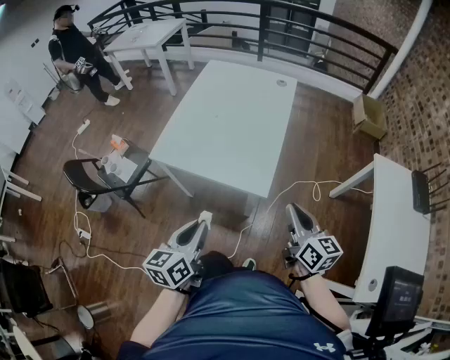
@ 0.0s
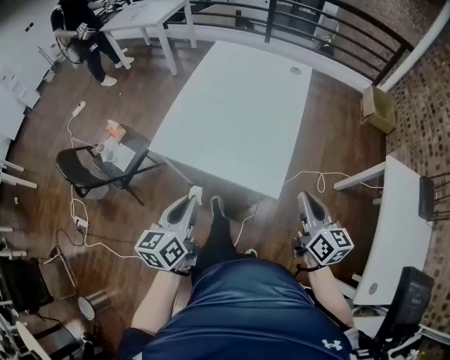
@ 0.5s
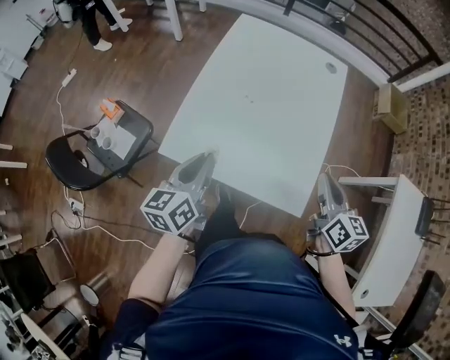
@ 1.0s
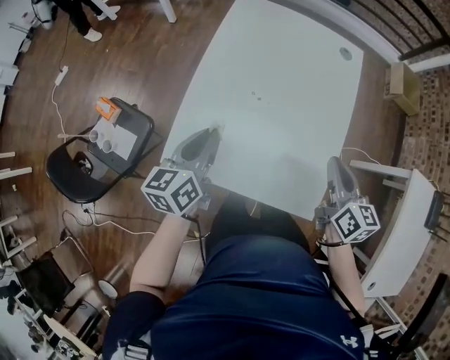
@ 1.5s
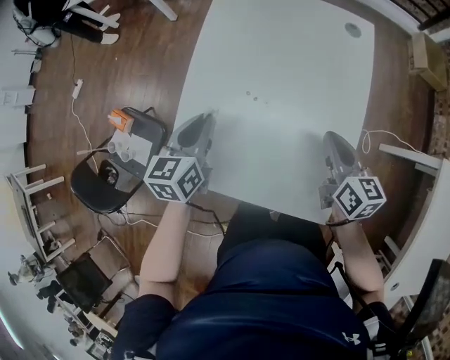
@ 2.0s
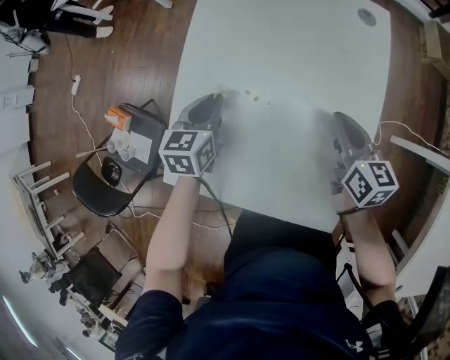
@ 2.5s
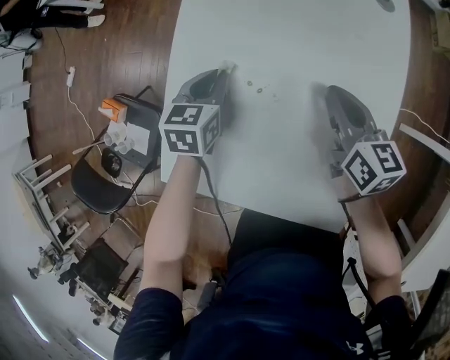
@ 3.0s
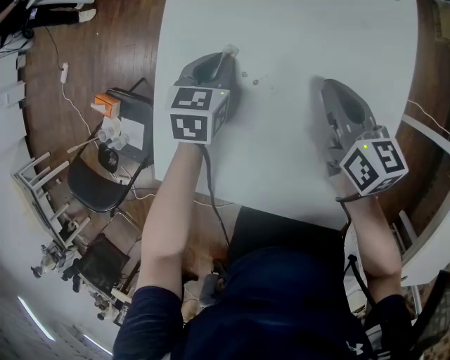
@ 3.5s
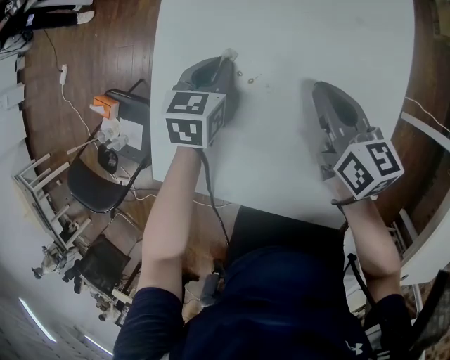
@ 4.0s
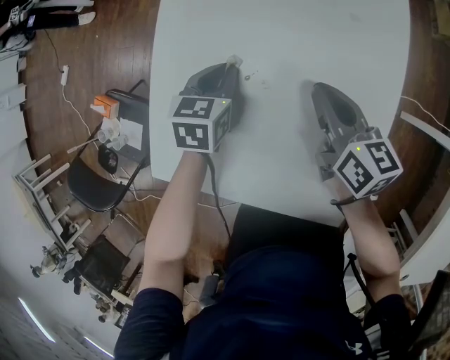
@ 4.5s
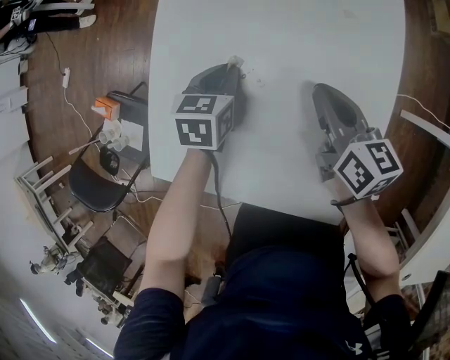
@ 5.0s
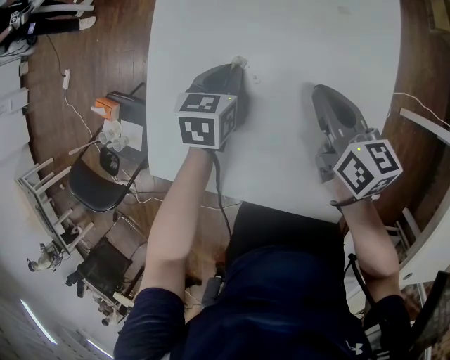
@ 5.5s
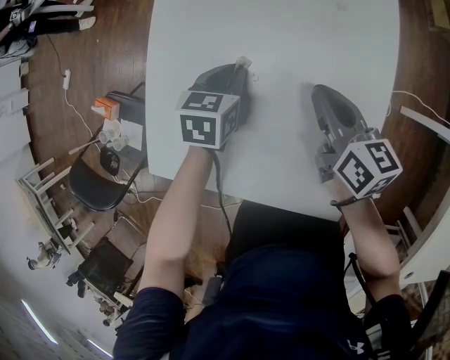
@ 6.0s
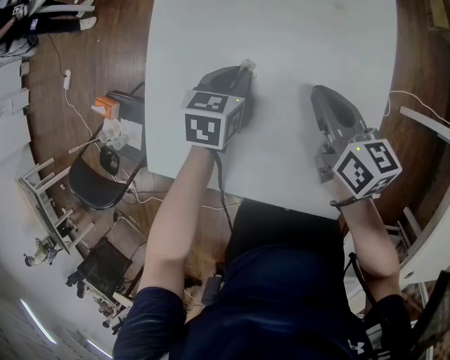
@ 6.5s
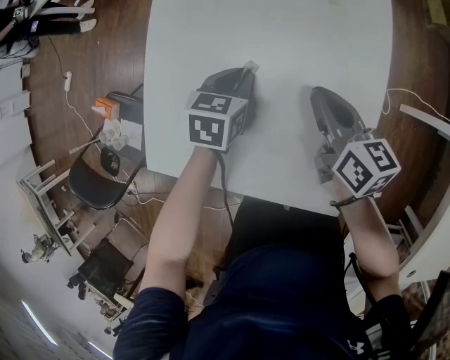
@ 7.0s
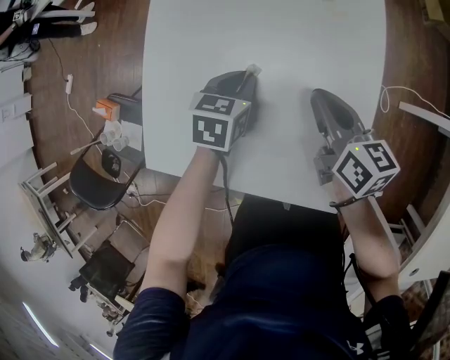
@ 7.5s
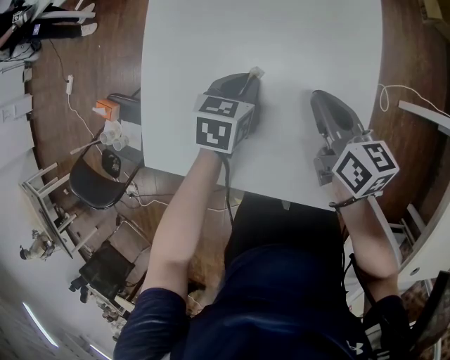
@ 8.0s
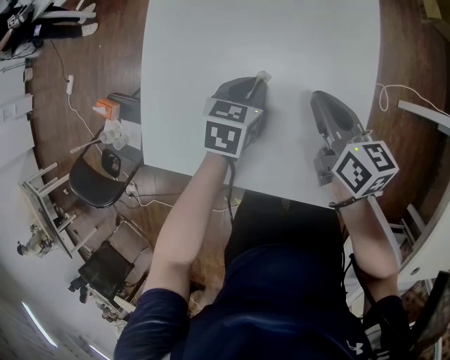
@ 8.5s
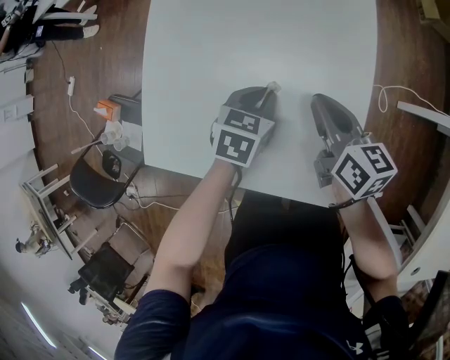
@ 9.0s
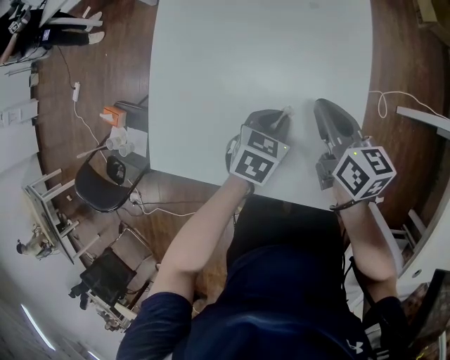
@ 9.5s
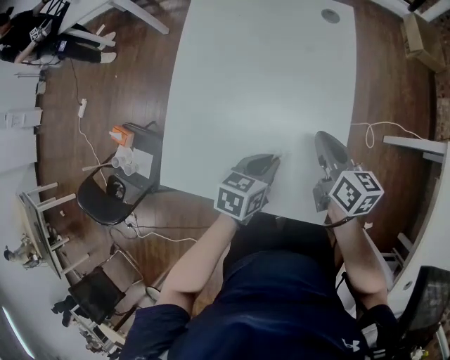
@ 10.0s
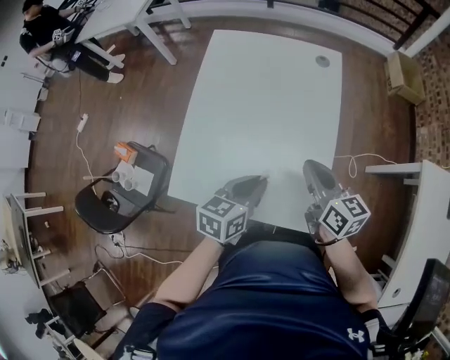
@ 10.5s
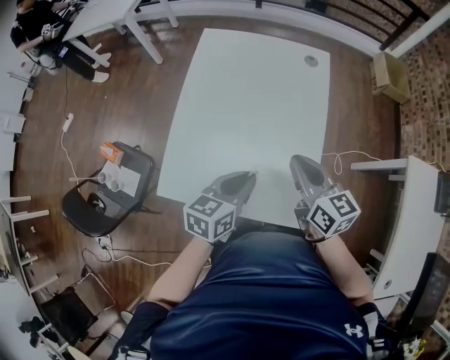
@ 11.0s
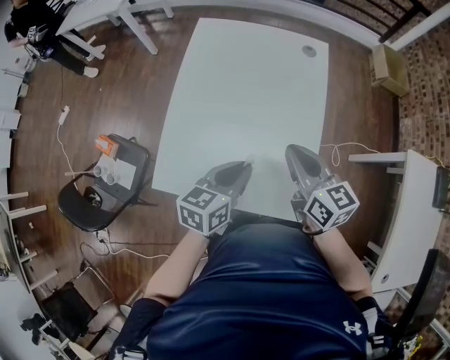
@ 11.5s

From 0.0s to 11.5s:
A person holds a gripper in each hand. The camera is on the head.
From 0.0s to 2.0s: The two grippers go roughly 40 cm forward.
From 2.0s to 4.0s: The right gripper travels forward, downward and to the left by about 10 cm; the left gripper shifts about 20 cm downward and forward, and changes its angle by roughly 20 degrees.
From 4.0s to 6.0s: The left gripper goes approximately 5 cm to the right.
From 6.0s to 7.5s: The right gripper changes place by about 5 cm. Meanwhile the left gripper ends up about 5 cm from where it was.
From 7.5s to 9.5s: The left gripper travels to the right and backward by roughly 10 cm.
From 9.5s to 11.5s: The grippers both shift upward by some 20 cm. The left gripper changes its angle by roughly 30 degrees.

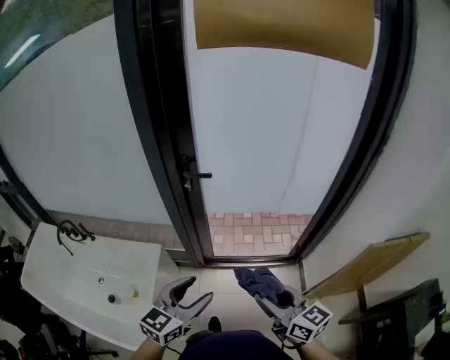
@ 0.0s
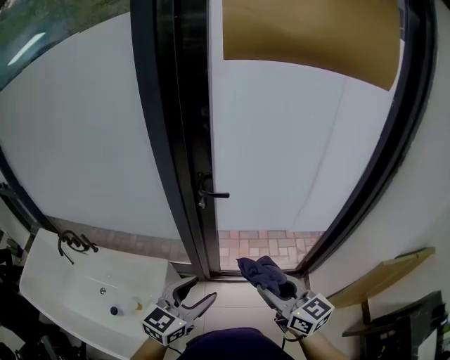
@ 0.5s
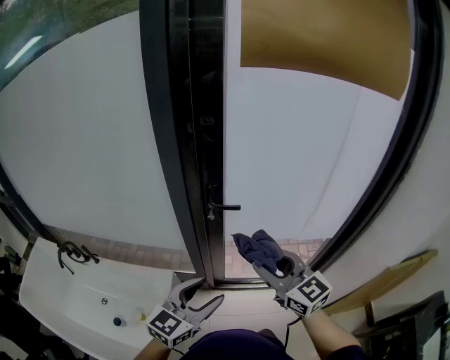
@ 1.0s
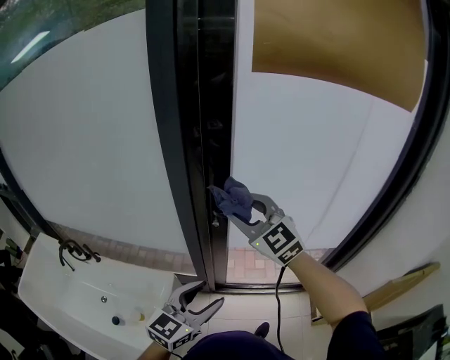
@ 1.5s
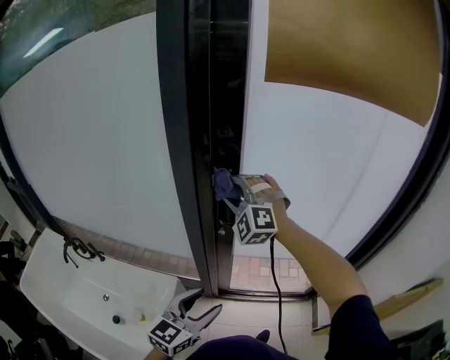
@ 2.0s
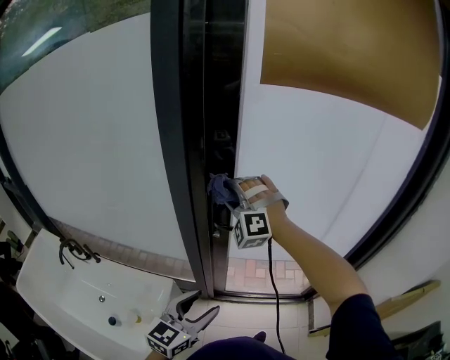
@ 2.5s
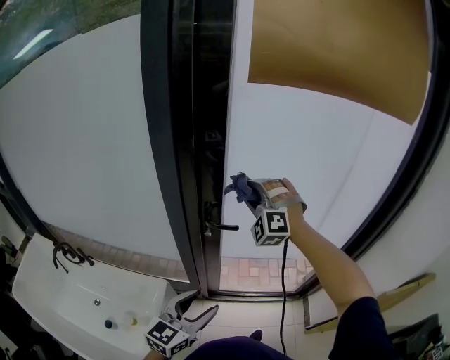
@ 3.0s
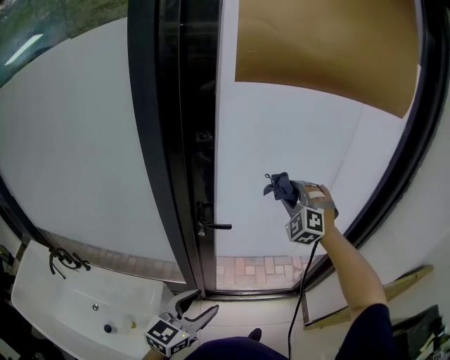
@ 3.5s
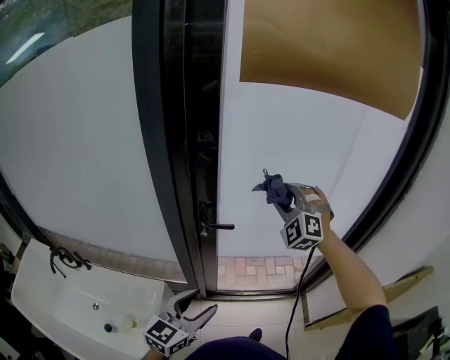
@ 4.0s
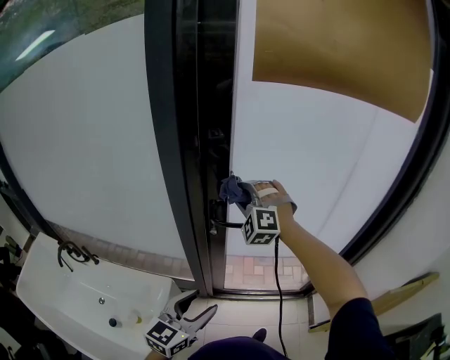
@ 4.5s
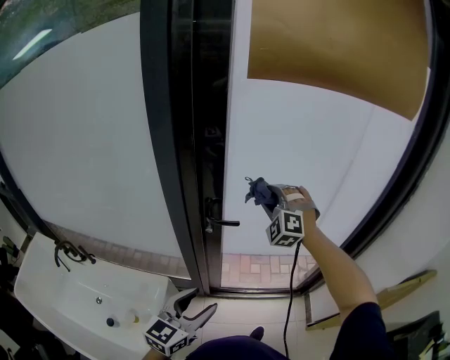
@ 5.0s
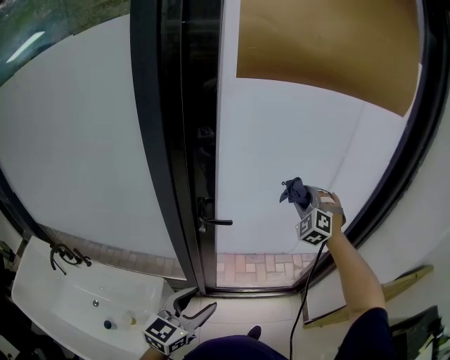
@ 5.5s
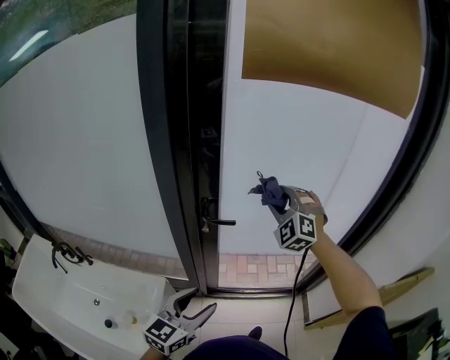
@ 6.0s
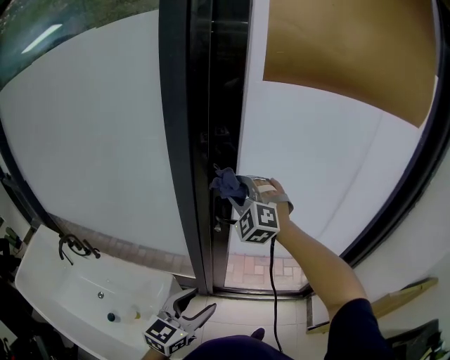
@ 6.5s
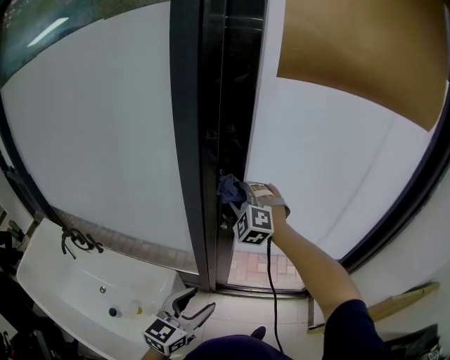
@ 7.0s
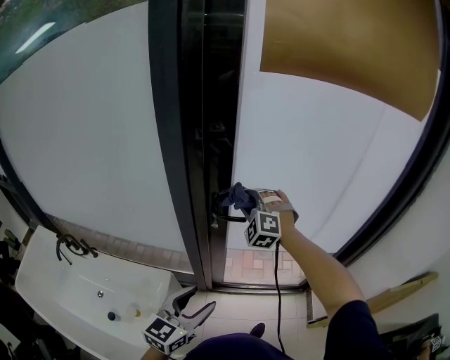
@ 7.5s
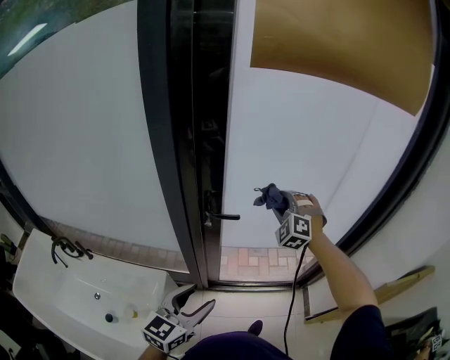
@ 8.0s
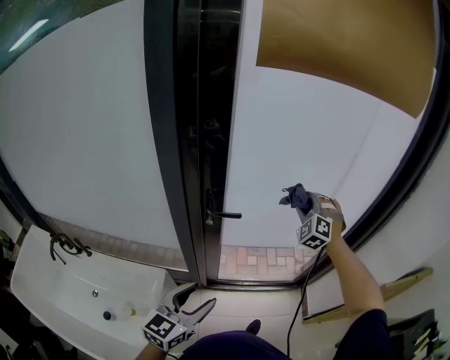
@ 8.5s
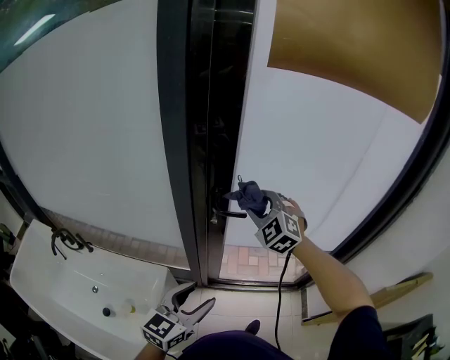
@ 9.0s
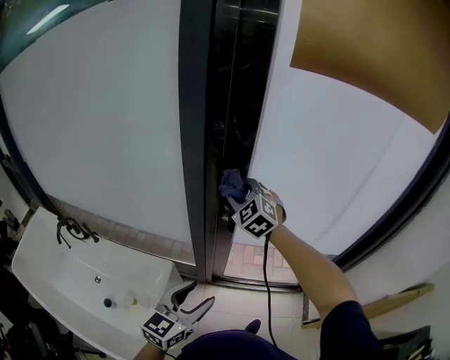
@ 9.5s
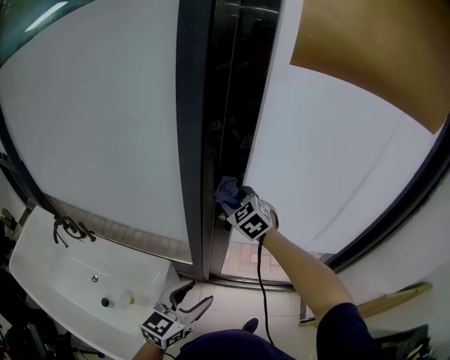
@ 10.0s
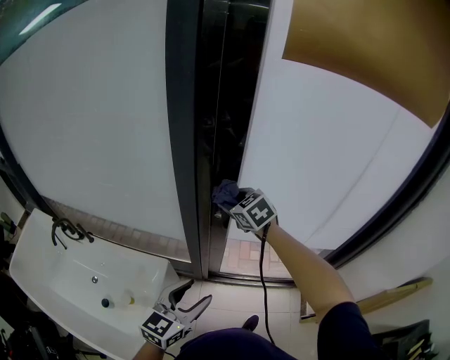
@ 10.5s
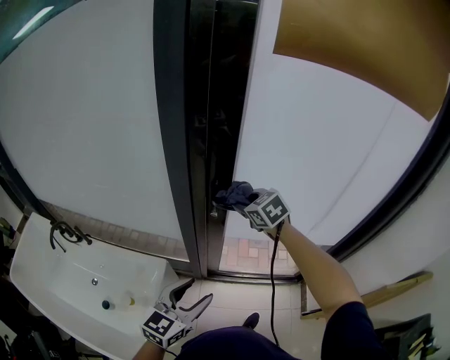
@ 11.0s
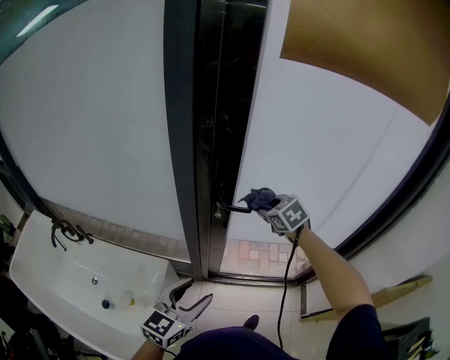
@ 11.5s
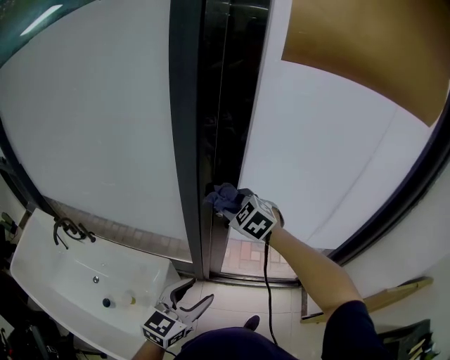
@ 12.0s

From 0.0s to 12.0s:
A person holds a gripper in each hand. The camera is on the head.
From 0.0s to 2.0s: The right gripper goes some 50 cm forward and to the left, and rolls counterclockwise, seen from behind, by roughly 90 degrees. Meanwhile the left gripper travels forward and to the left by about 20 cm.
From 2.0s to 4.0s: The right gripper shifts roughly 20 cm to the right.
From 4.0s to 6.0s: The right gripper goes left and right, approximately 25 cm each way, reversing 2 times.
From 6.0s to 8.0s: The right gripper shifts about 10 cm downward, and travels to the left and back again, approximately 20 cm each way.
From 8.0s to 10.0s: The right gripper heads to the left, covering approximately 20 cm, and changes its angle by approximately 40 degrees.
From 10.0s to 12.0s: The right gripper travels to the right and back again, some 15 cm each way.

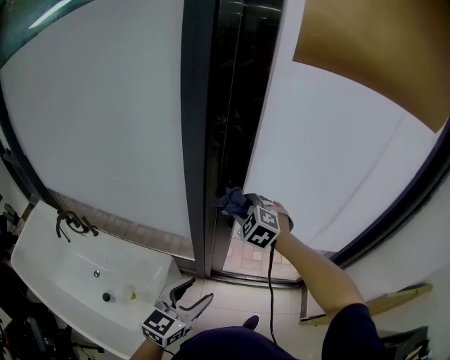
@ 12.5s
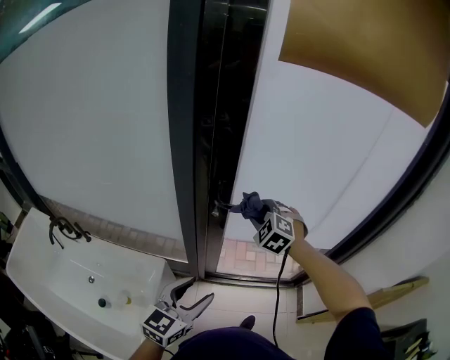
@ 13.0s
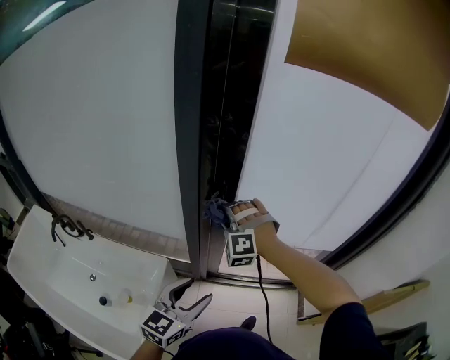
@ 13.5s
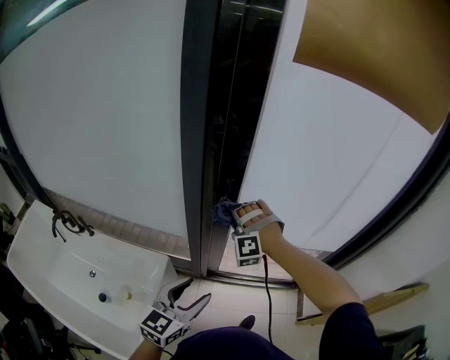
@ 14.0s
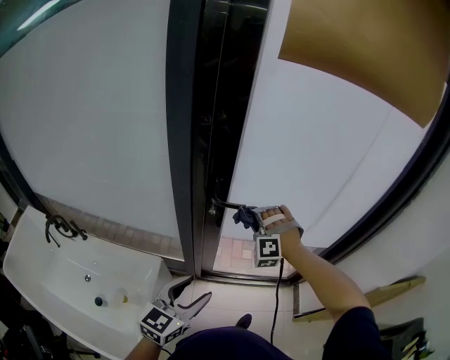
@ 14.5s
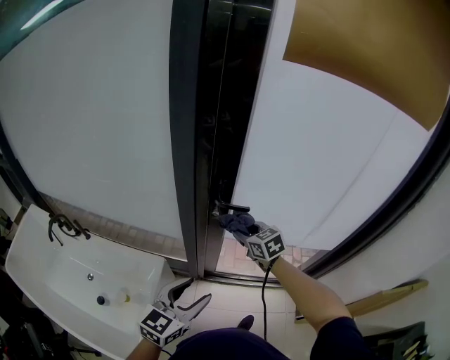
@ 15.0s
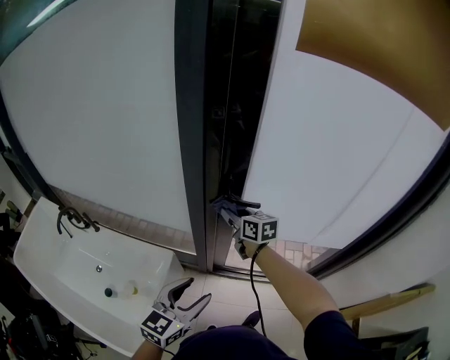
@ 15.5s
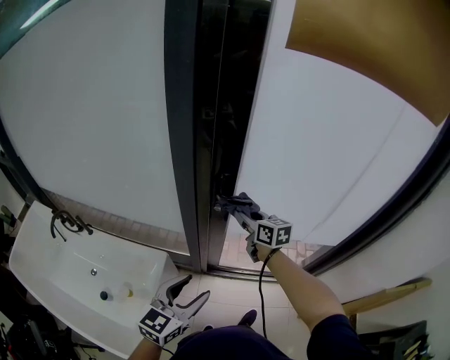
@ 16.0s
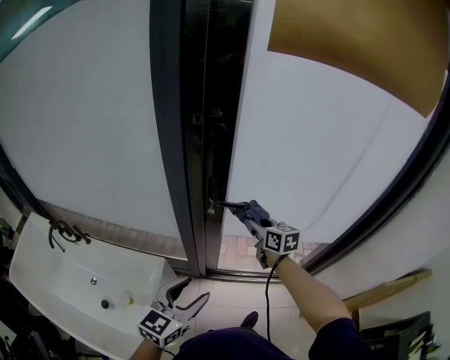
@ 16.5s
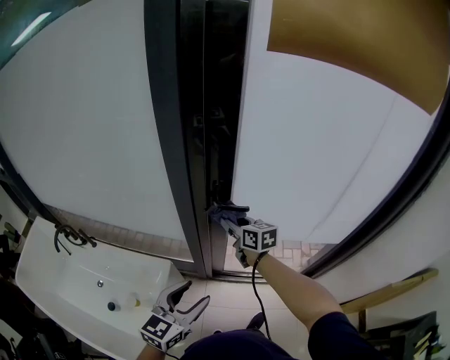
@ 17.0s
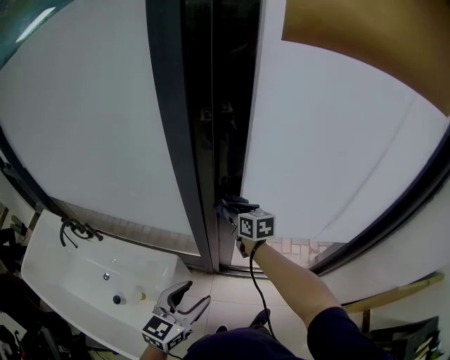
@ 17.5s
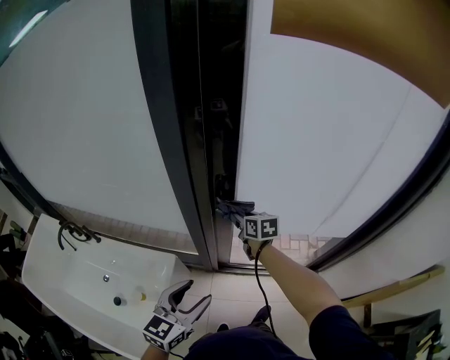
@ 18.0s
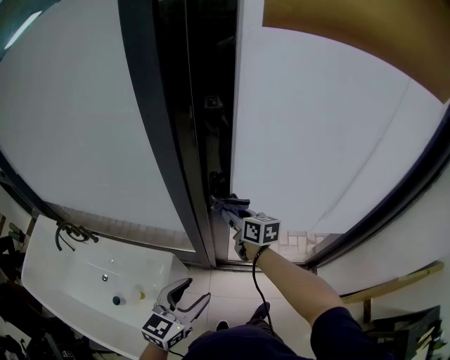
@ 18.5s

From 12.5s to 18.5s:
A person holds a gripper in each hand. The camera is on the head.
From 12.5s to 14.5s: The right gripper goes left and right, some 10 cm each way, reversing 2 times, and changes its angle by about 40 degrees.
From 14.5s to 16.5s: The right gripper reaches approximately 10 cm to the left, then returns, and rolls clockwise, seen from behind, by some 110 degrees.
From 16.5s to 18.5s: The right gripper travels to the left by roughly 10 cm.
